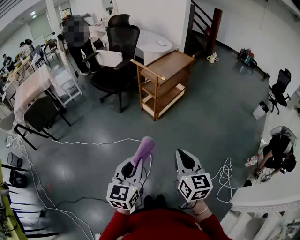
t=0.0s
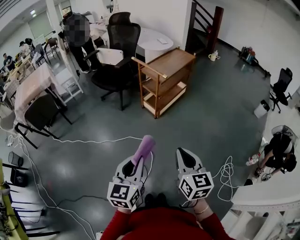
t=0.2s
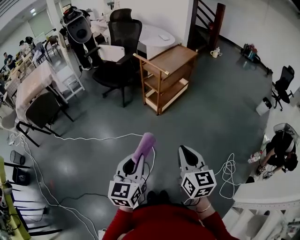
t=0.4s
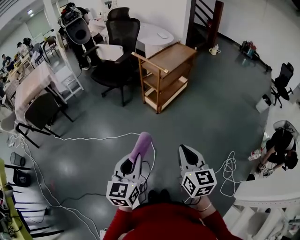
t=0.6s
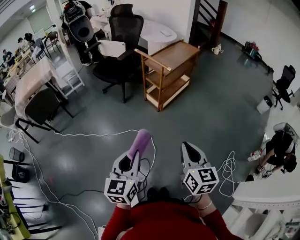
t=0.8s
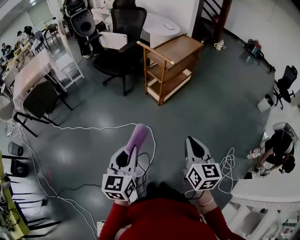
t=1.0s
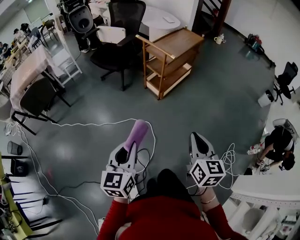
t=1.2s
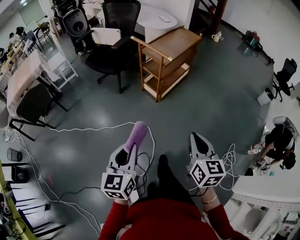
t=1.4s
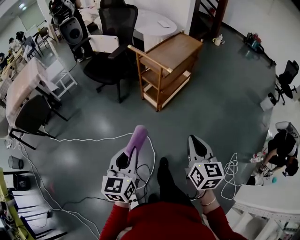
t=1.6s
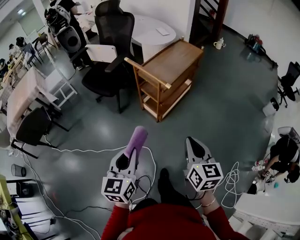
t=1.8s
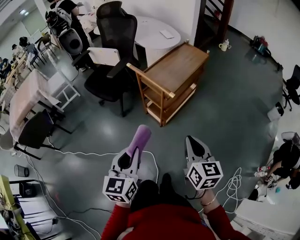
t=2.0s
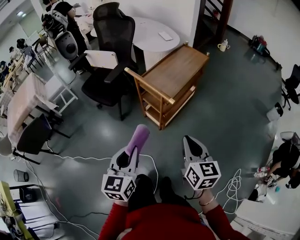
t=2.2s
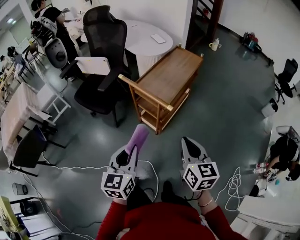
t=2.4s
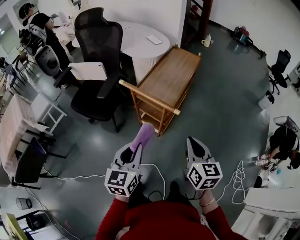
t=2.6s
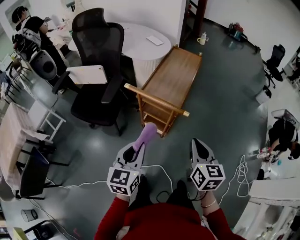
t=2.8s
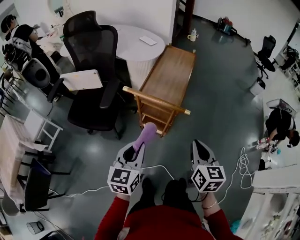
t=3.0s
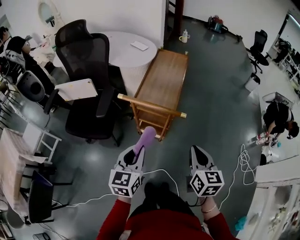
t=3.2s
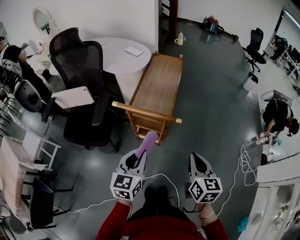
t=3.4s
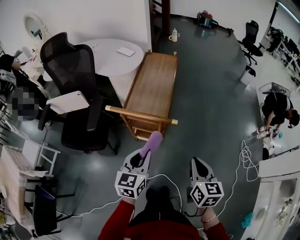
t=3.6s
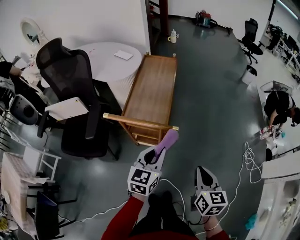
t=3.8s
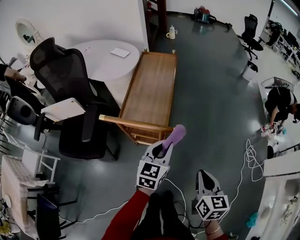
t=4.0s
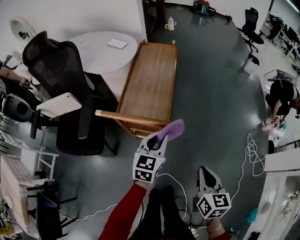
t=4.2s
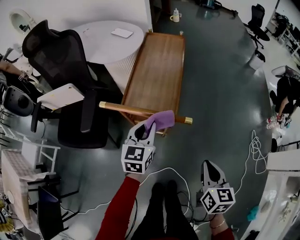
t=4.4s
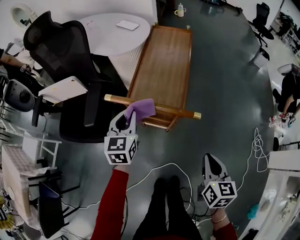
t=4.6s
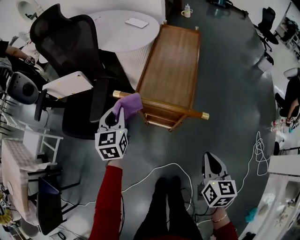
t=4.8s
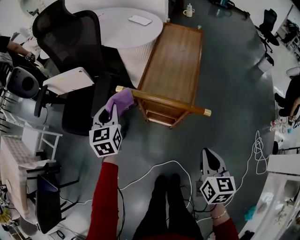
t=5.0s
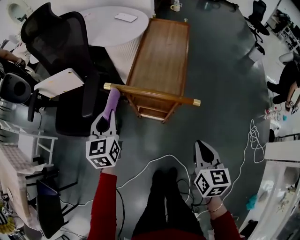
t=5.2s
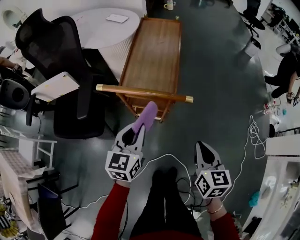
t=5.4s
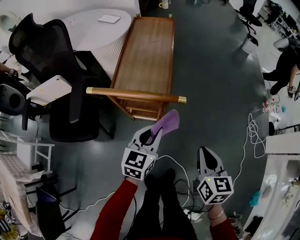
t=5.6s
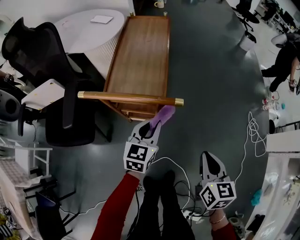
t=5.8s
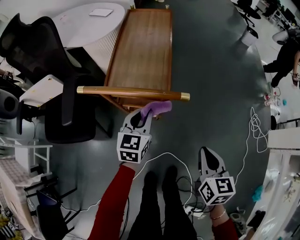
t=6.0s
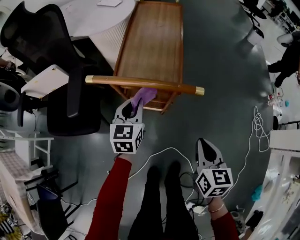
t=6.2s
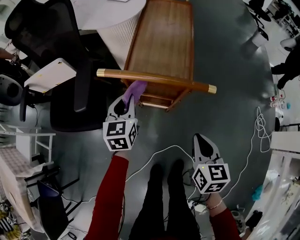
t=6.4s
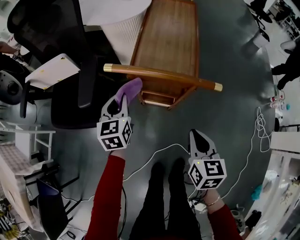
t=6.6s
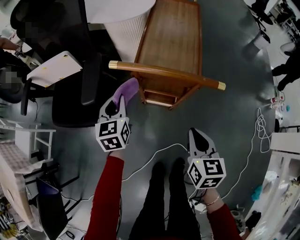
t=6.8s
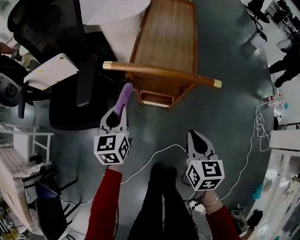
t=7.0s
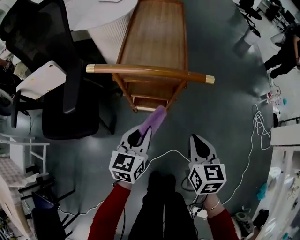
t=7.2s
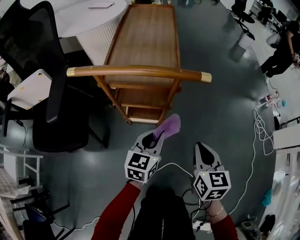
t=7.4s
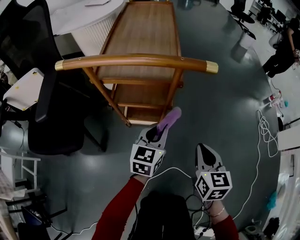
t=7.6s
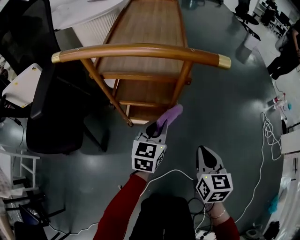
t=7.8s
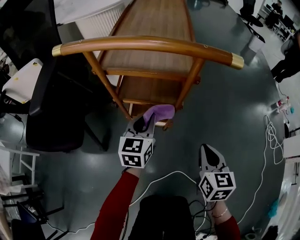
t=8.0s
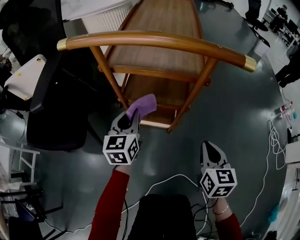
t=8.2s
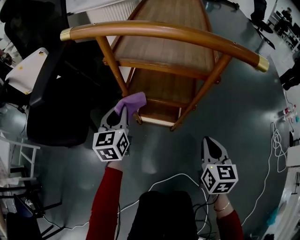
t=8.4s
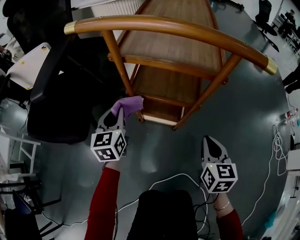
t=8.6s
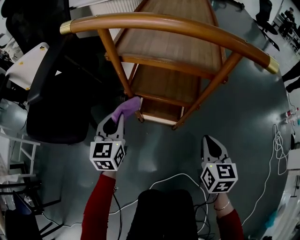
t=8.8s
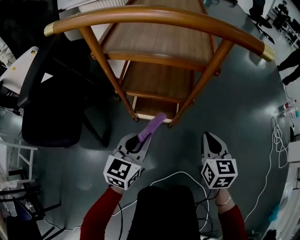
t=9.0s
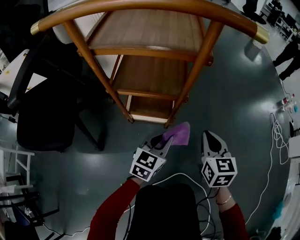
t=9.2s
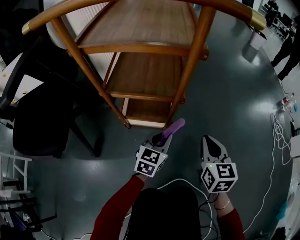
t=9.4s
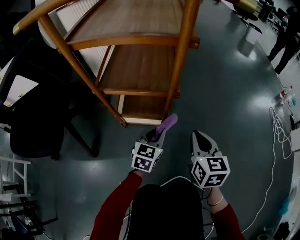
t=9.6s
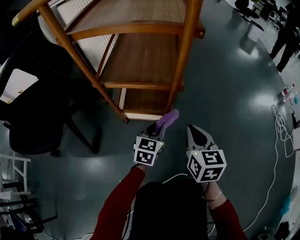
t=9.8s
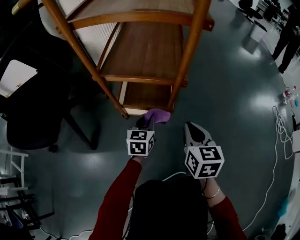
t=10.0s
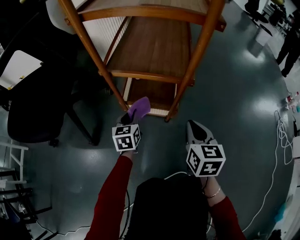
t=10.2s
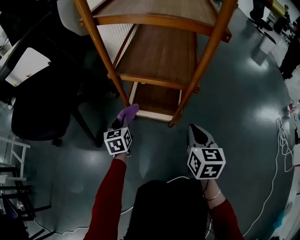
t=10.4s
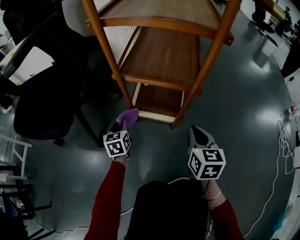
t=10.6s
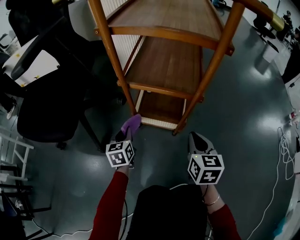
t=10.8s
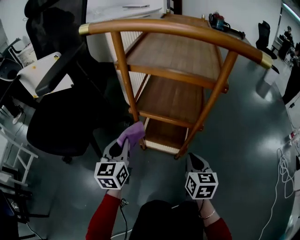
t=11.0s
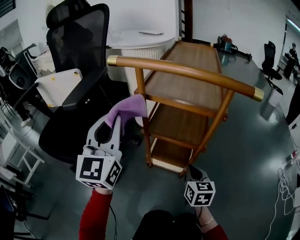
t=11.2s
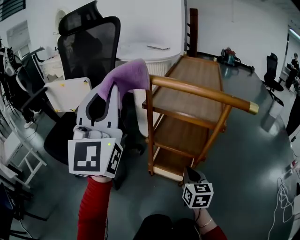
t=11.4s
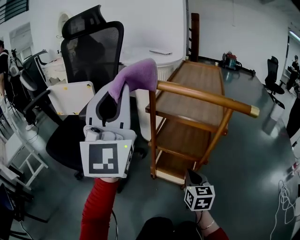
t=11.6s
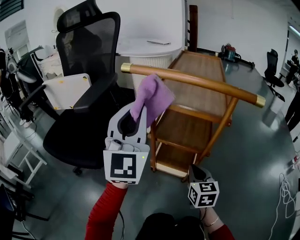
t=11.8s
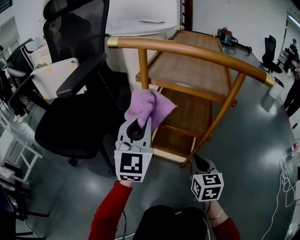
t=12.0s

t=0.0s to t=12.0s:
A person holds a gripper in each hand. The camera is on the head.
t=0.0s to t=1.6s: Both grippers move forward, roughly 15 cm.
t=1.6s to t=3.0s: The right gripper changes place by some 20 cm, and changes its angle by approximately 20 degrees. Meanwhile the left gripper changes place by roughly 30 cm, and swivels roughly 30 degrees.
t=3.0s to t=4.4s: The left gripper shifts about 20 cm forward and downward; the right gripper travels downward and to the right by about 10 cm.
t=4.4s to t=6.0s: The right gripper moves approximately 5 cm to the left and comes back. The left gripper goes left and right, some 30 cm each way, reversing 2 times.
t=6.0s to t=7.6s: Both grippers move downward, approximately 15 cm. The left gripper reaches some 20 cm to the left, then returns.
t=7.6s to t=9.0s: The right gripper goes about 10 cm downward and forward; the left gripper travels to the left and downward by roughly 10 cm.
t=9.0s to t=10.4s: The right gripper shifts some 5 cm downward. Meanwhile the left gripper moves downward, some 20 cm, and swivels about 30 degrees.
t=10.4s to t=12.0s: The left gripper moves upward, some 30 cm, and tips its fingers upward by about 40 degrees.

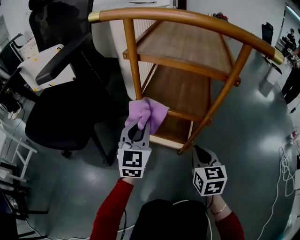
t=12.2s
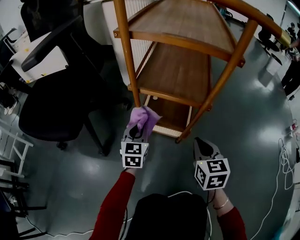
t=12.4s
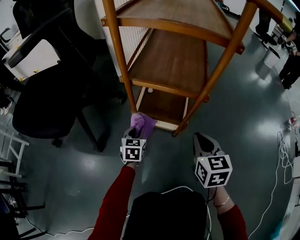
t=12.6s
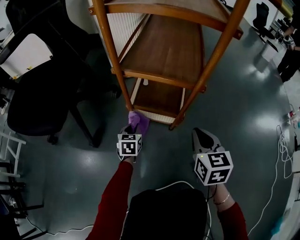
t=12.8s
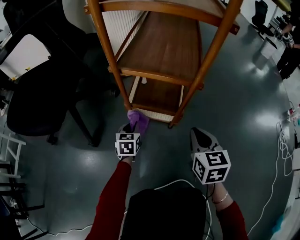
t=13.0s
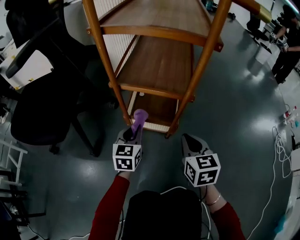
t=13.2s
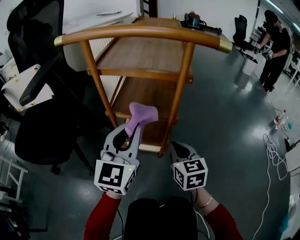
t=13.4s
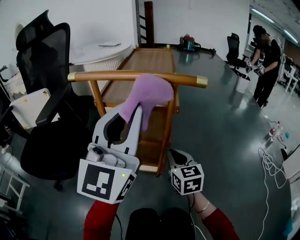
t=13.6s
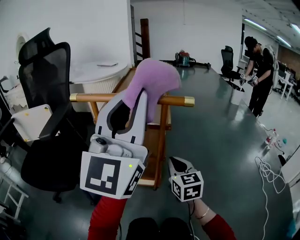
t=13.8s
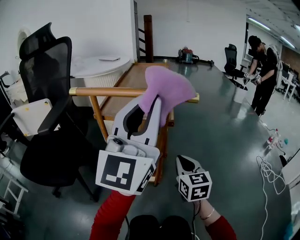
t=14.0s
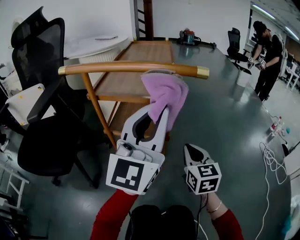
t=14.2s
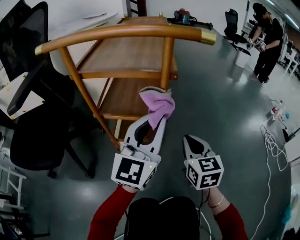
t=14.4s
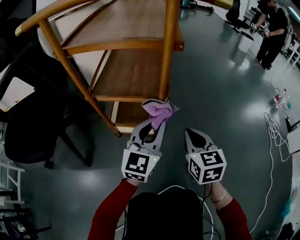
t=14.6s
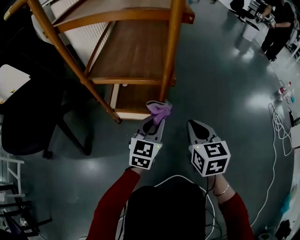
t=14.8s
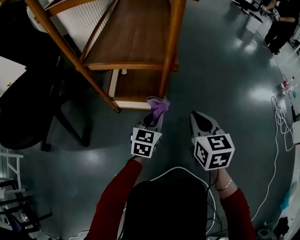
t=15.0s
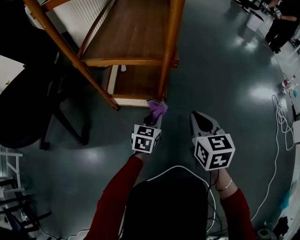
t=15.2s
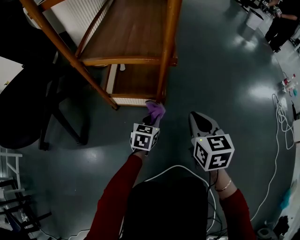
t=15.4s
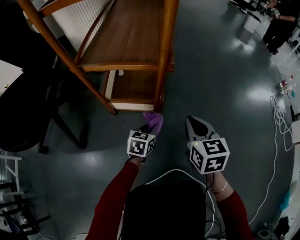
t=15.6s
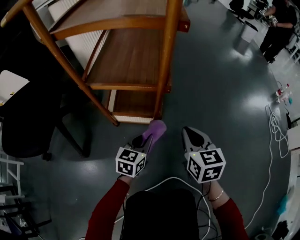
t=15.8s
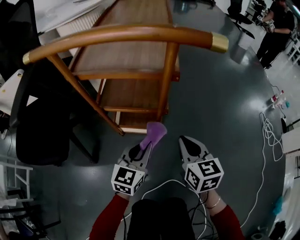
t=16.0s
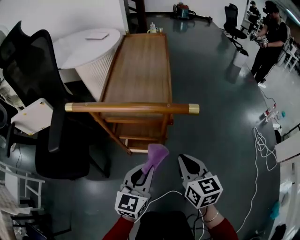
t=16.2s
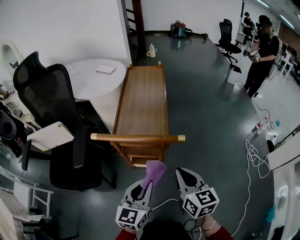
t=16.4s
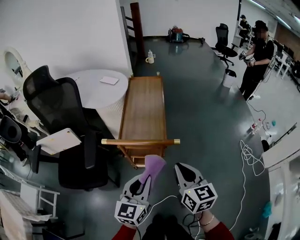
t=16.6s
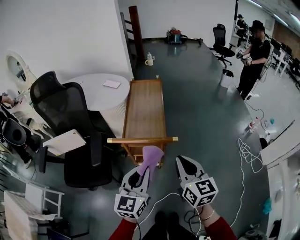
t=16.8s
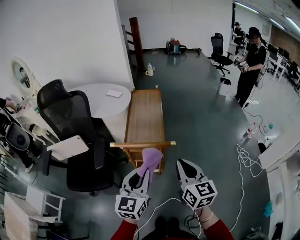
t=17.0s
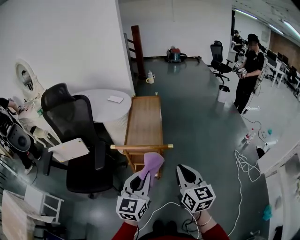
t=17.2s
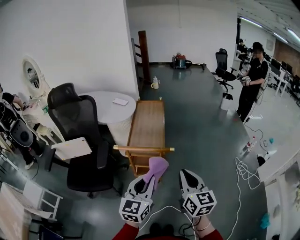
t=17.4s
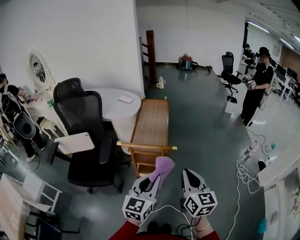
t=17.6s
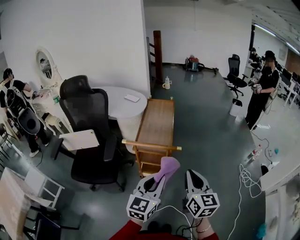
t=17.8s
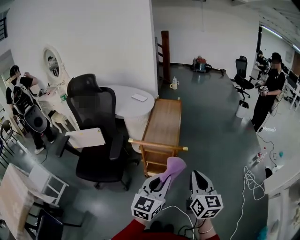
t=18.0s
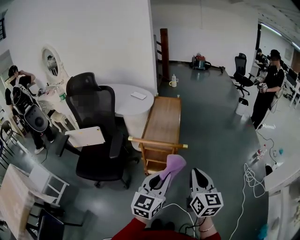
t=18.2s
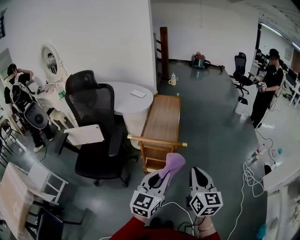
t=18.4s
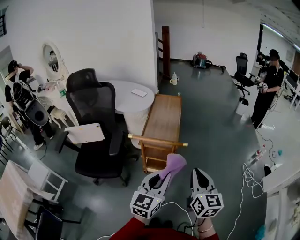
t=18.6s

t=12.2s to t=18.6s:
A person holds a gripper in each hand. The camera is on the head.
t=12.2s to t=13.8s: The left gripper heads upward, covering about 40 cm, and tilts its fingers approximately 40 degrees upward; the right gripper shifts approximately 15 cm upward.
t=13.8s to t=15.4s: The left gripper travels downward by roughly 70 cm, and angles its fingers downward, by roughly 70 degrees, while the right gripper moves downward, some 20 cm.
t=15.4s to t=17.0s: The grippers both shift upward by roughly 70 cm. The right gripper rotates some 30 degrees. Meanwhile the left gripper tilts its fingers approximately 30 degrees upward.
t=17.0s to t=18.6s: The right gripper heads backward, covering some 5 cm; the left gripper heads backward and to the right, covering some 10 cm.

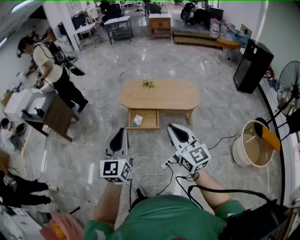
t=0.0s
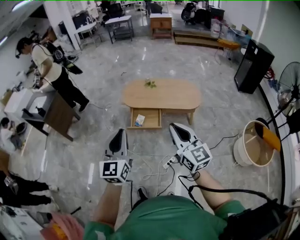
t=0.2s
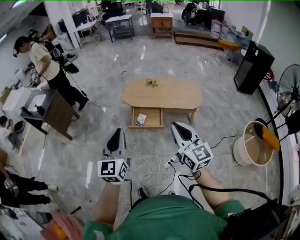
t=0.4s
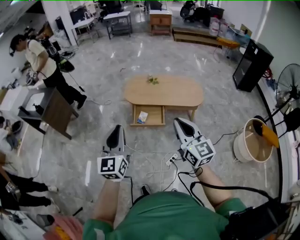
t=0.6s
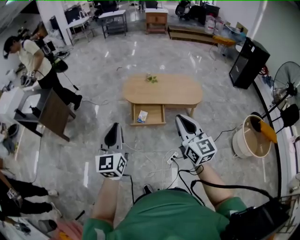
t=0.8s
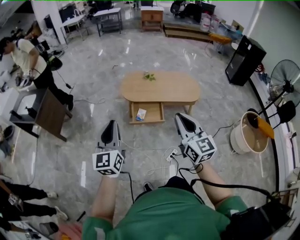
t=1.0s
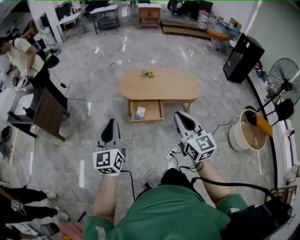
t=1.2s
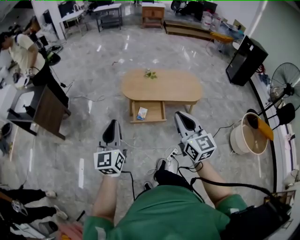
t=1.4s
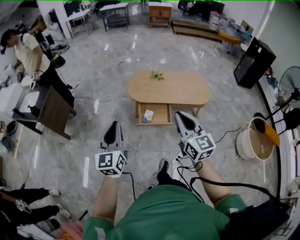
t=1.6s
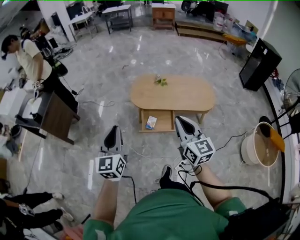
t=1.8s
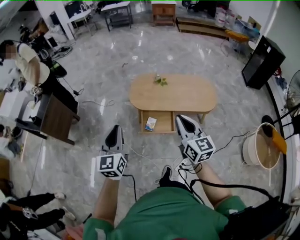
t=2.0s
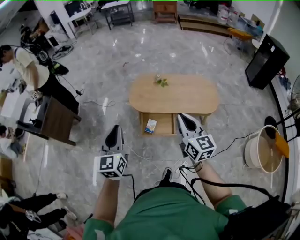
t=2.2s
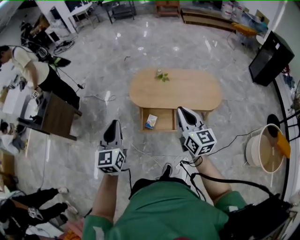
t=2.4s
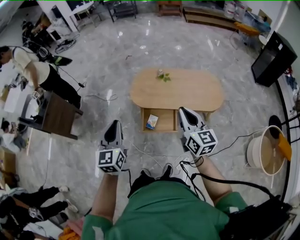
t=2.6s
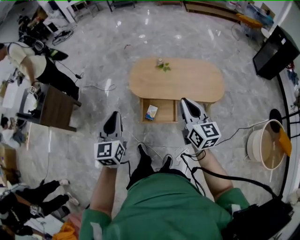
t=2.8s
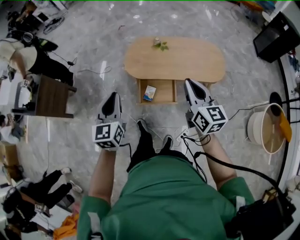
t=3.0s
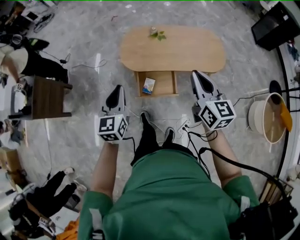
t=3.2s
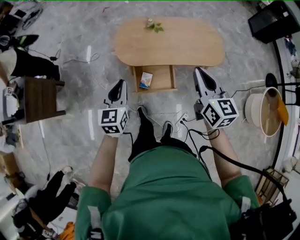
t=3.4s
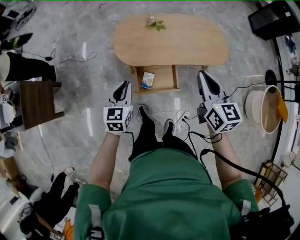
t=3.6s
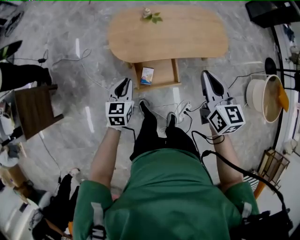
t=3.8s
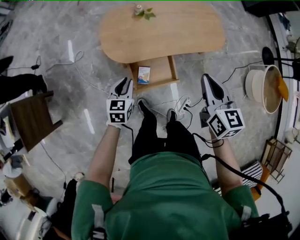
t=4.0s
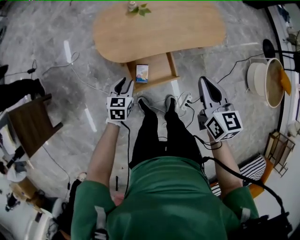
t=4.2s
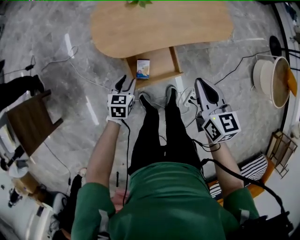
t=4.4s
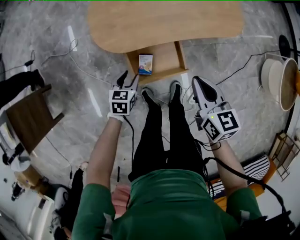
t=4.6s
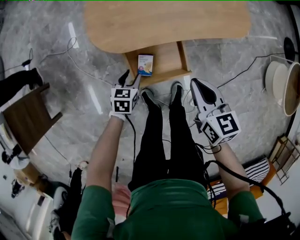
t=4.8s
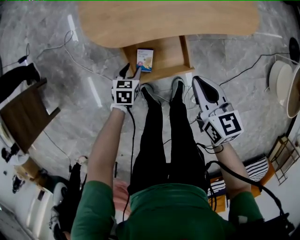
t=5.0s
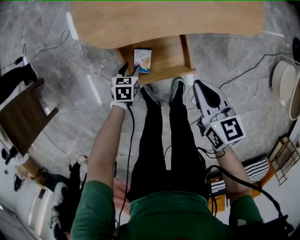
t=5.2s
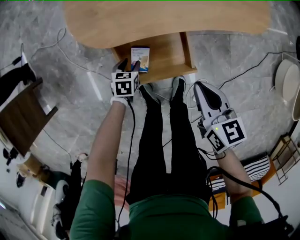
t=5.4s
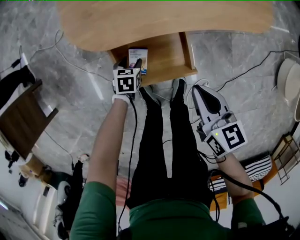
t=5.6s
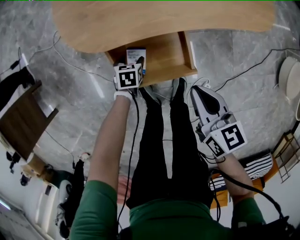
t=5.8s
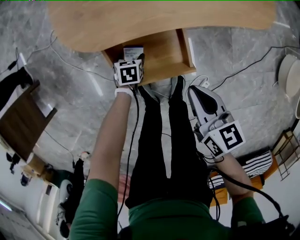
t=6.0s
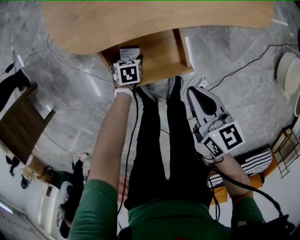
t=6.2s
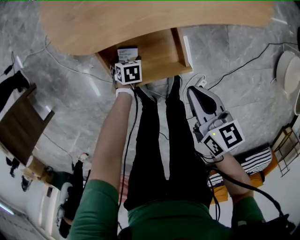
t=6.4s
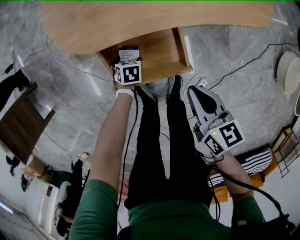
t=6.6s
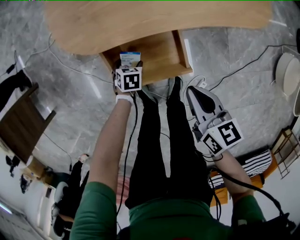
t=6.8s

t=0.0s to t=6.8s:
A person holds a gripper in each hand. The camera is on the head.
t=0.0s to t=1.4s: The two grippers go about 25 cm to the left and forward.
t=1.4s to t=2.8s: Both grippers travel together forward and to the right, some 25 cm.
t=2.8s to t=4.0s: The right gripper travels downward by approximately 15 cm, and rotates about 30 degrees. The left gripper heads downward, covering about 35 cm, and rotates approximately 40 degrees.
t=4.0s to t=5.4s: Both grippers travel together downward, roughly 35 cm. The right gripper changes its angle by some 20 degrees. The left gripper changes its angle by roughly 30 degrees.
t=5.4s to t=6.8s: The left gripper is displaced downward by approximately 5 cm, and opens.
